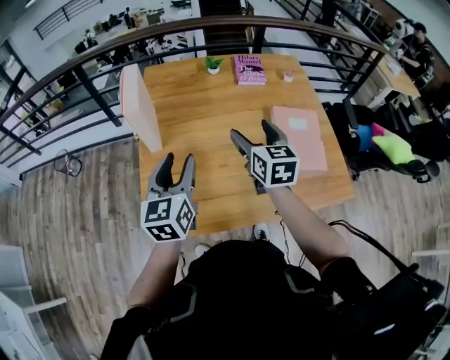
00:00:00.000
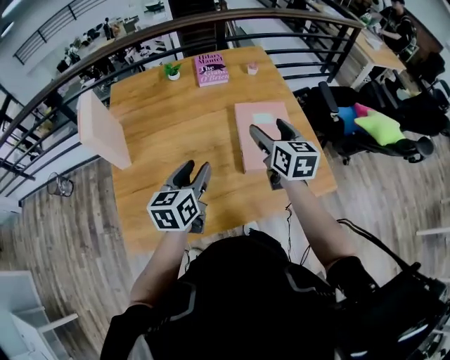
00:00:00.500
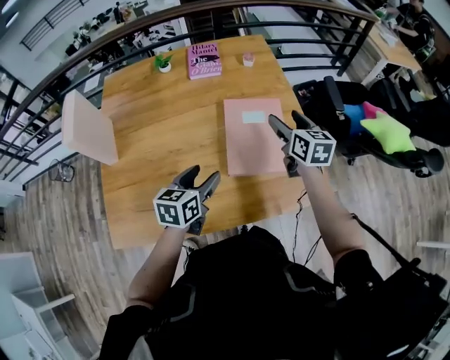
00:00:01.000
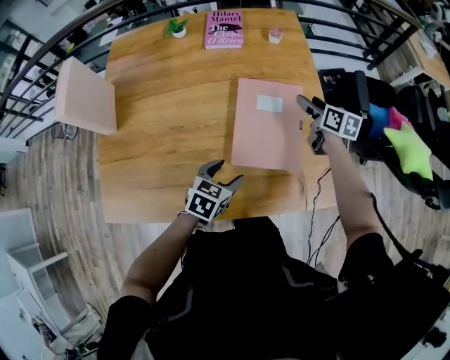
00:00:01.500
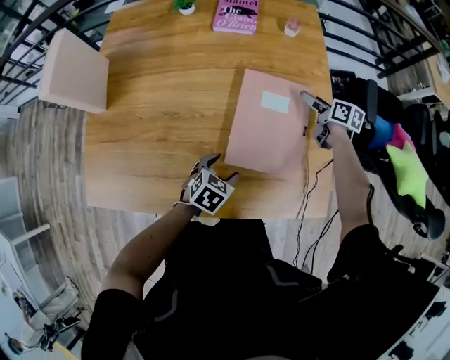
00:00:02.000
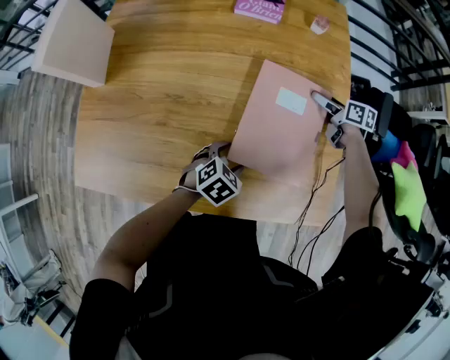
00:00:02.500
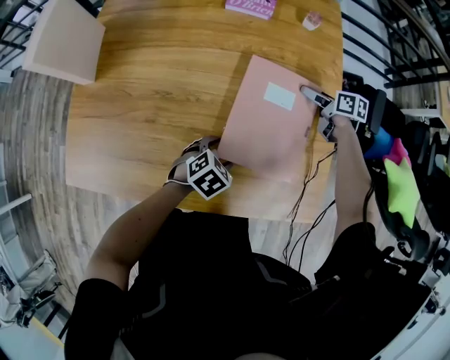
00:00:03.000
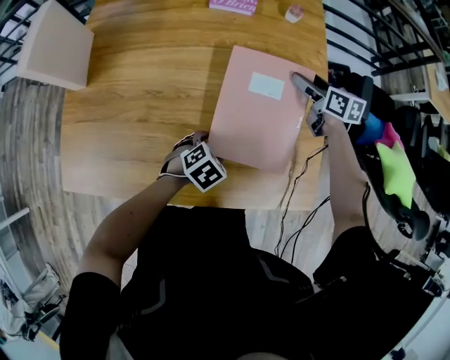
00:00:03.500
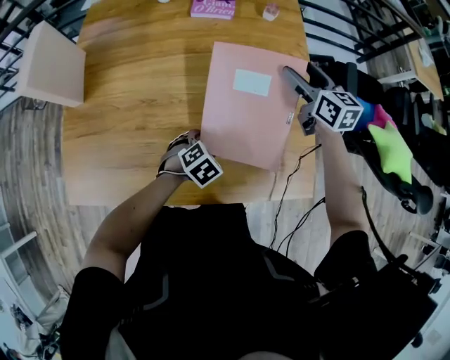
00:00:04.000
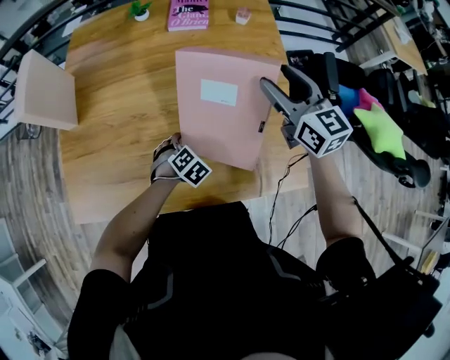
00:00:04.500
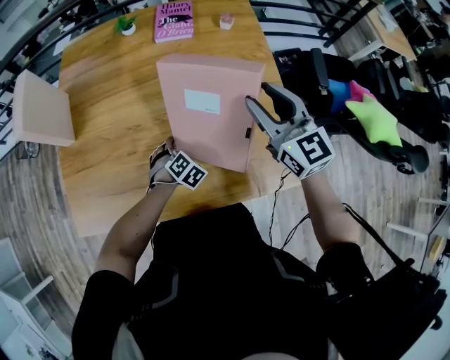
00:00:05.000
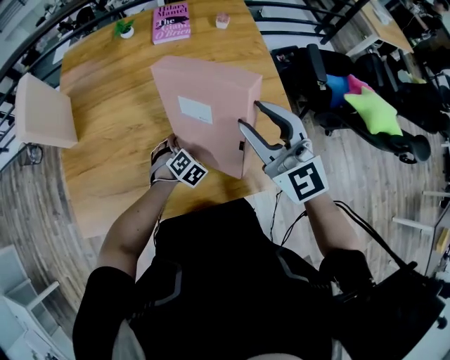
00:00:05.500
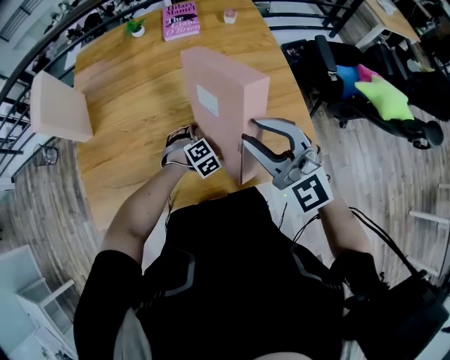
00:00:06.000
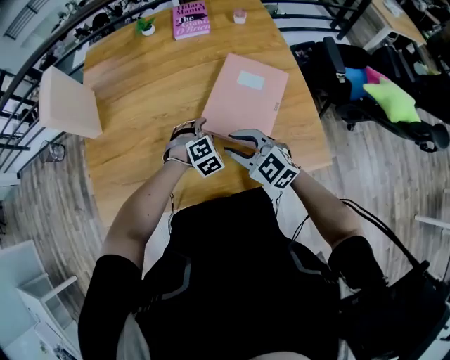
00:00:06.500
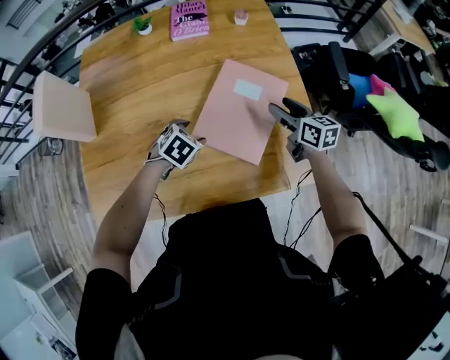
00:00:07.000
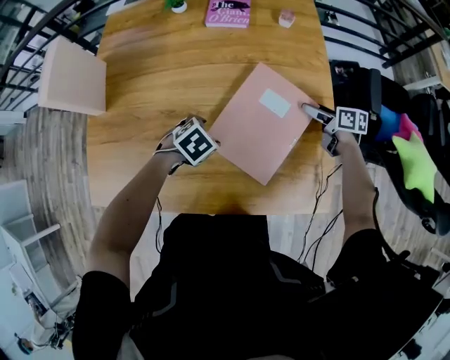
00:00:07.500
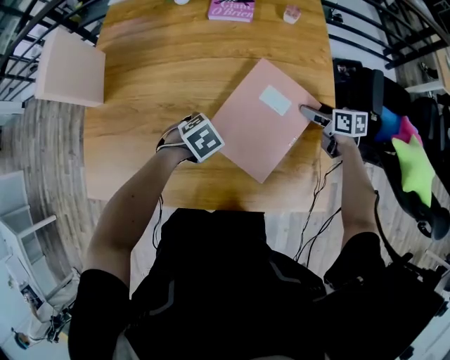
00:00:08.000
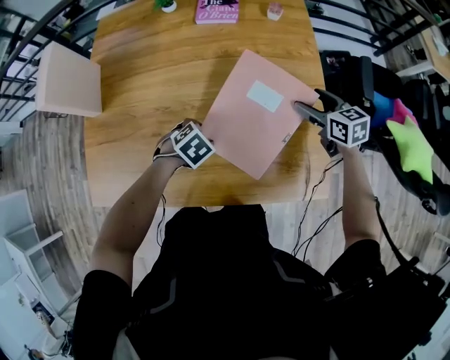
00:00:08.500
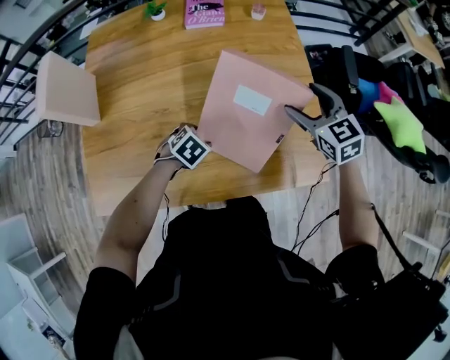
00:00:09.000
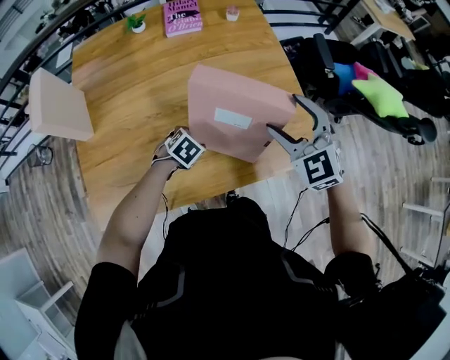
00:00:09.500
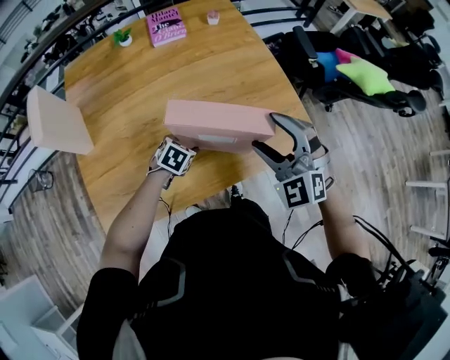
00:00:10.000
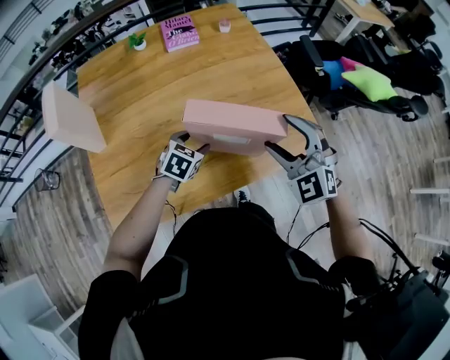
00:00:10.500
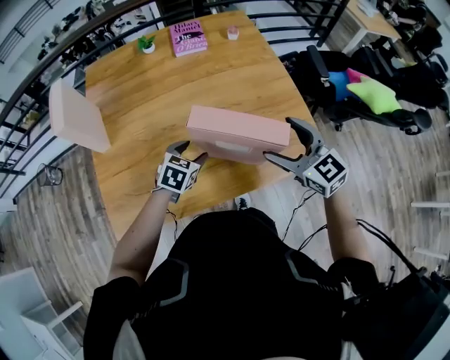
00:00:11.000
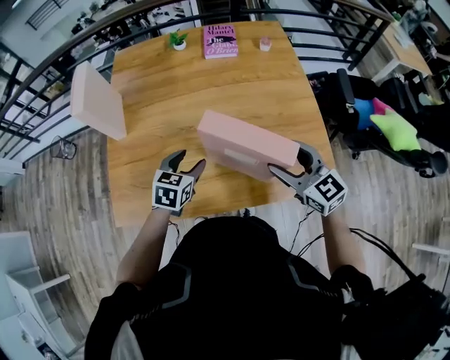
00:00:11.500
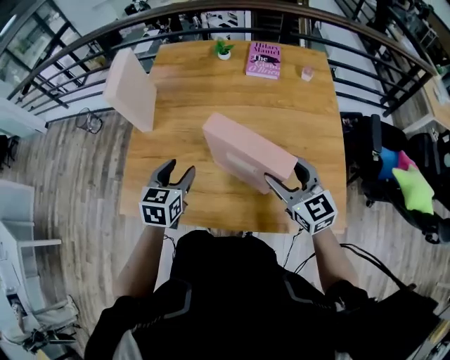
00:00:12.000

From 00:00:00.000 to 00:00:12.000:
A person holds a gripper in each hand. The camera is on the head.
From 00:00:00.000 to 00:00:02.000: The left gripper heads to the right and downward, covering roughly 50 cm, and points its fingers some 50 degrees further downward, while the right gripper heads to the right, downward and forward, covering roughly 50 cm, and swivels roughly 40 degrees.
From 00:00:02.000 to 00:00:04.000: The right gripper travels upward by approximately 15 cm, and changes its angle by about 30 degrees, while the left gripper rotates about 20 degrees.
From 00:00:04.000 to 00:00:06.000: The left gripper swivels some 30 degrees; the right gripper travels backward, to the left and upward by approximately 35 cm, rolls counterclockwise, seen from behind, by roughly 40 degrees, and closes up.
From 00:00:06.000 to 00:00:08.000: The right gripper changes place by some 40 cm, rotates around the line of its fingers by some 60 degrees, clockwise from behind, and opens its fingers. The left gripper changes place by some 5 cm, and turns by approximately 40 degrees.
From 00:00:08.000 to 00:00:10.000: The left gripper changes place by some 10 cm. Meanwhile the right gripper ends up roughly 40 cm from where it was, and rotates around the line of its fingers by approximately 70 degrees, counterclockwise from behind.
From 00:00:10.000 to 00:00:12.000: The left gripper heads upward, covering some 15 cm, and turns by approximately 50 degrees. The right gripper changes place by some 10 cm, and changes its angle by approximately 50 degrees.

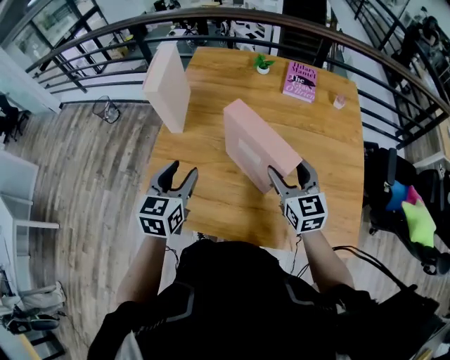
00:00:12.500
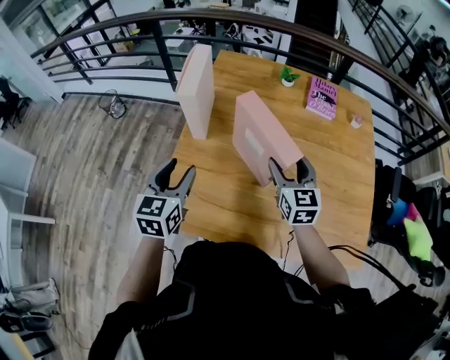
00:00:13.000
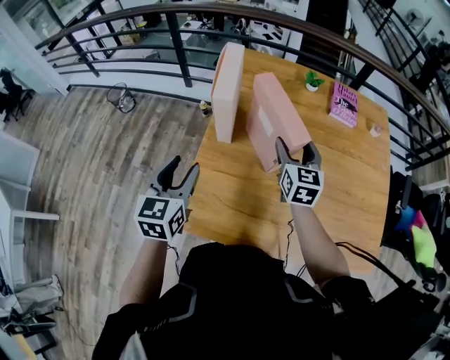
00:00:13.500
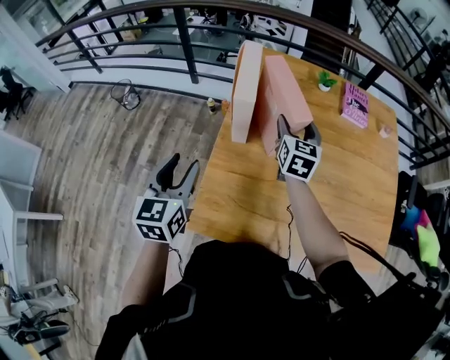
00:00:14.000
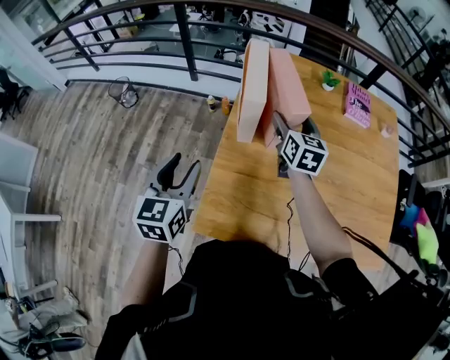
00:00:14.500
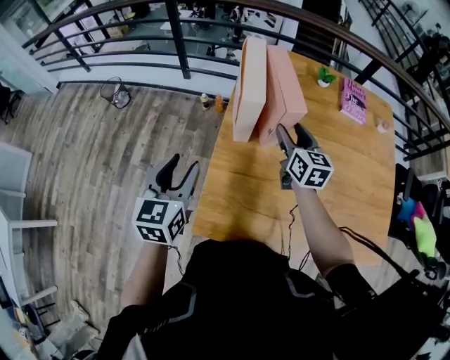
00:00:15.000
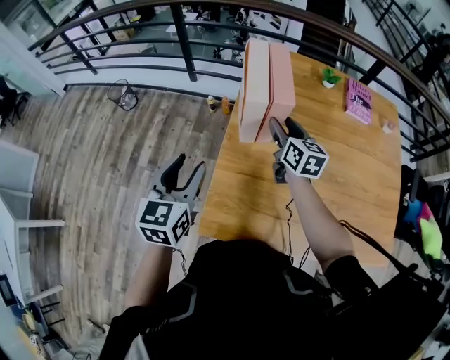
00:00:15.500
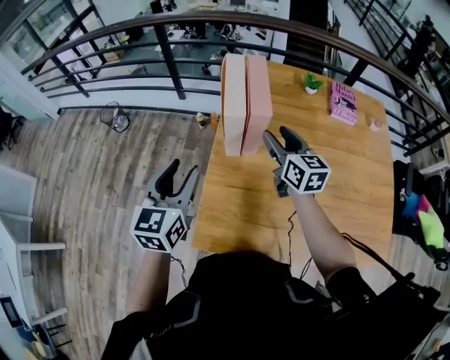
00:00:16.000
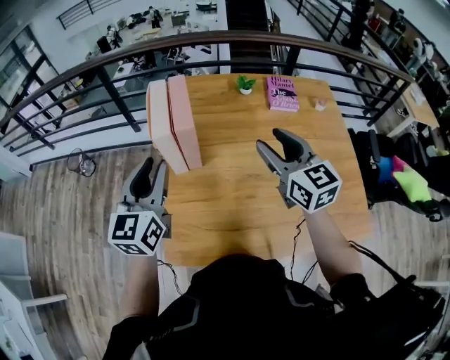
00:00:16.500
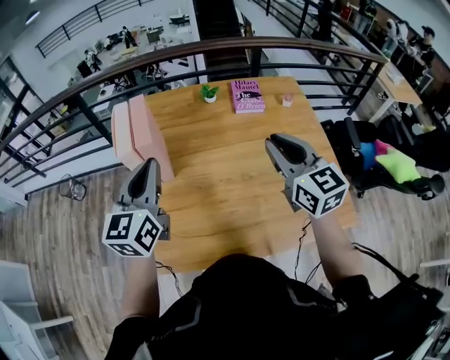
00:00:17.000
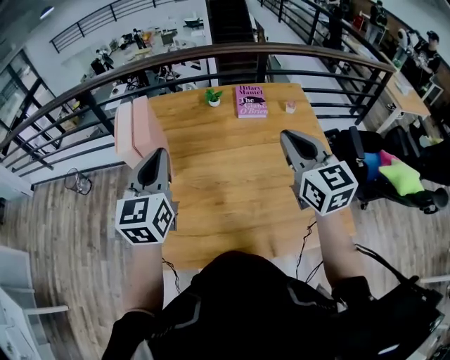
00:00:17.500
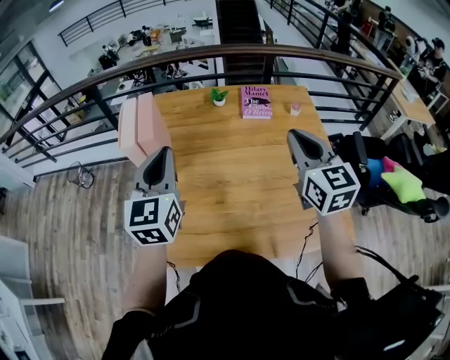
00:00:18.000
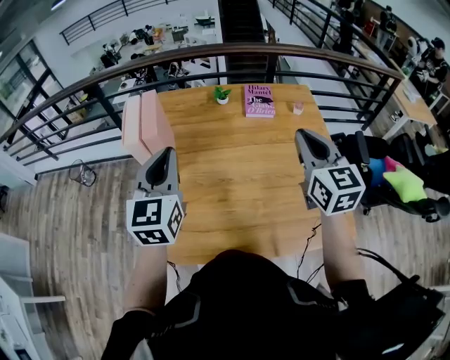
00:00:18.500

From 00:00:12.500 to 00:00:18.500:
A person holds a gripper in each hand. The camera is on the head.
From 00:00:12.500 to 00:00:14.500: The left gripper moves to the left, approximately 30 cm. Meanwhile the right gripper shifts about 35 cm to the left and forward.
From 00:00:14.500 to 00:00:16.500: The left gripper moves to the right and upward, roughly 15 cm. The right gripper goes roughly 25 cm to the right, backward and upward, and closes up.
From 00:00:16.500 to 00:00:18.500: Both grippers travel together to the right, about 20 cm. The left gripper closes up; the right gripper closes its fingers.

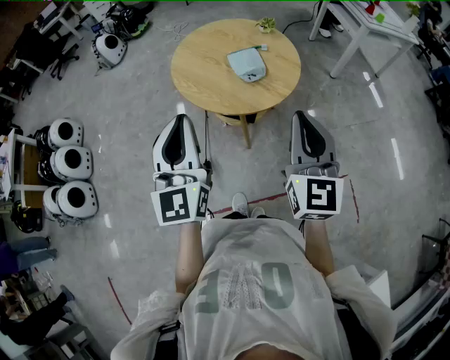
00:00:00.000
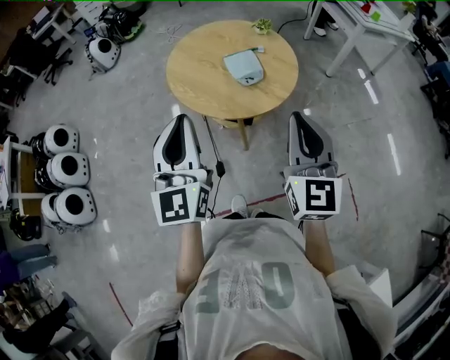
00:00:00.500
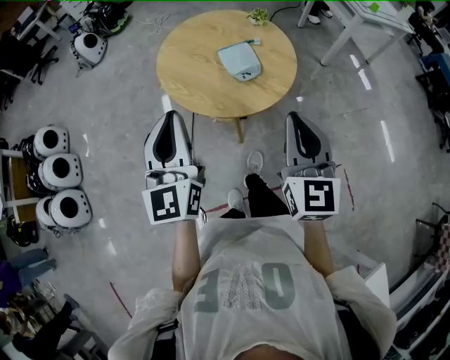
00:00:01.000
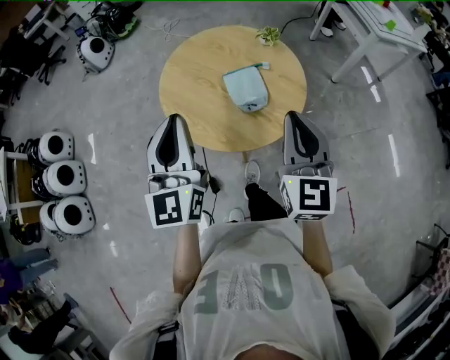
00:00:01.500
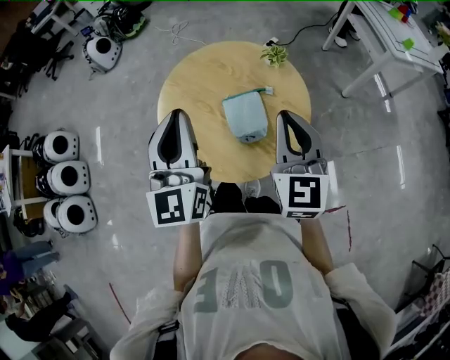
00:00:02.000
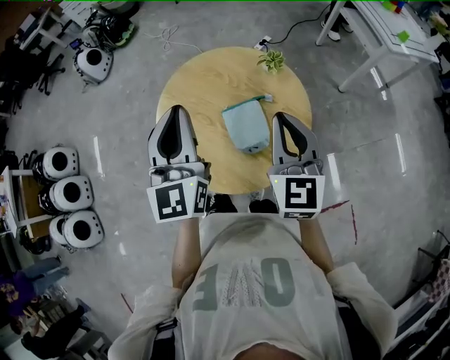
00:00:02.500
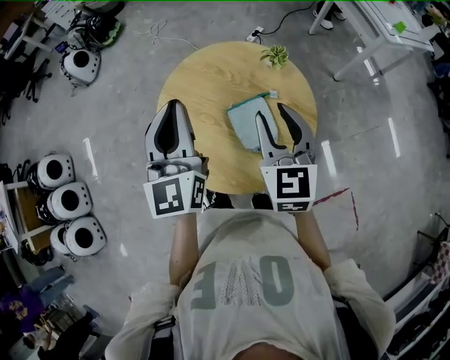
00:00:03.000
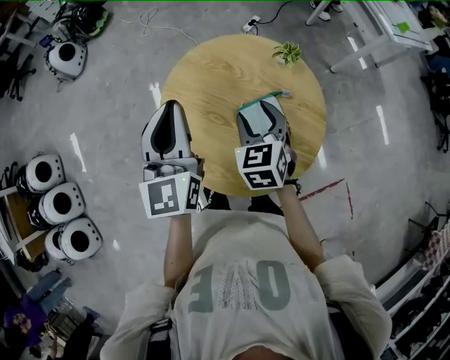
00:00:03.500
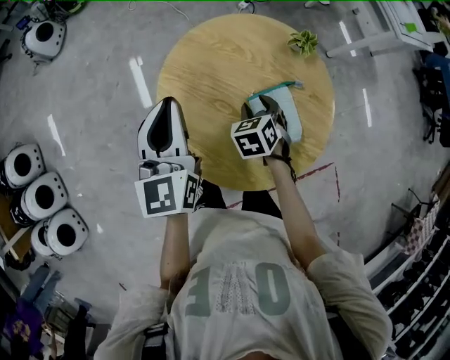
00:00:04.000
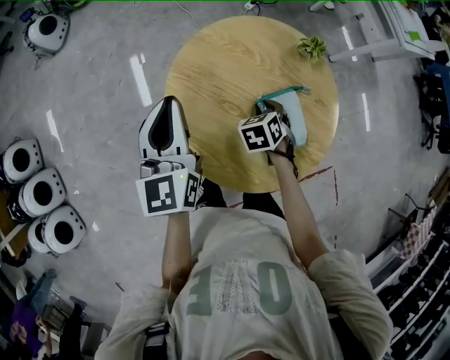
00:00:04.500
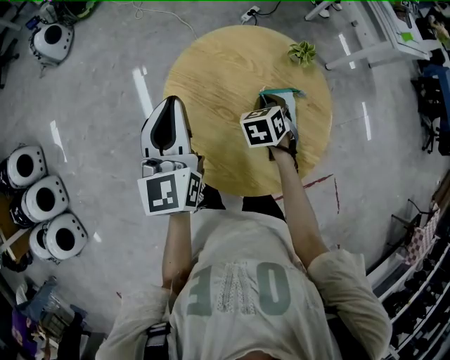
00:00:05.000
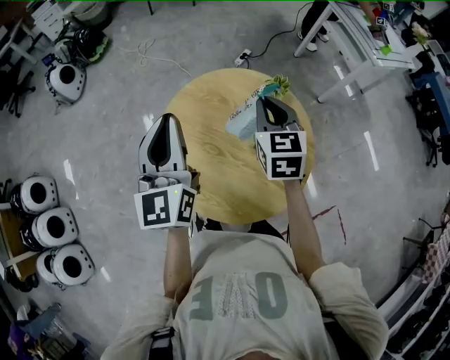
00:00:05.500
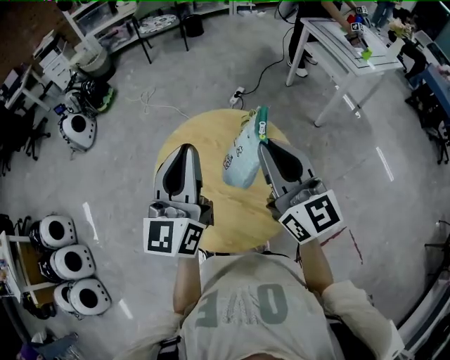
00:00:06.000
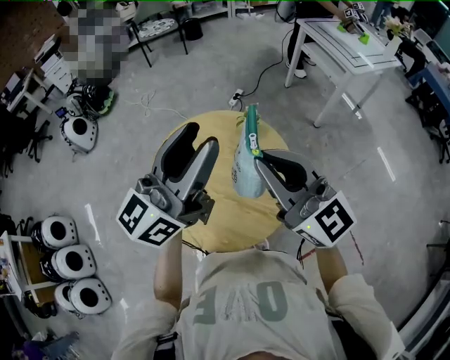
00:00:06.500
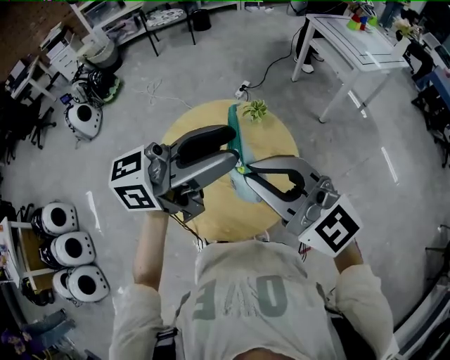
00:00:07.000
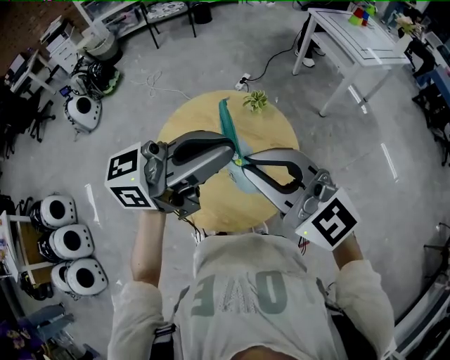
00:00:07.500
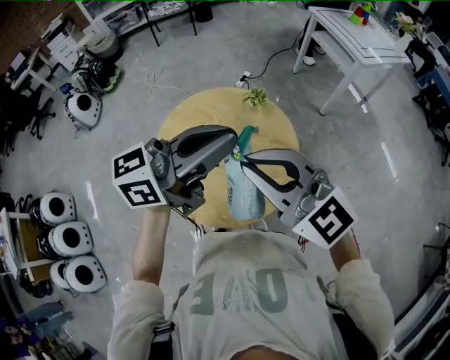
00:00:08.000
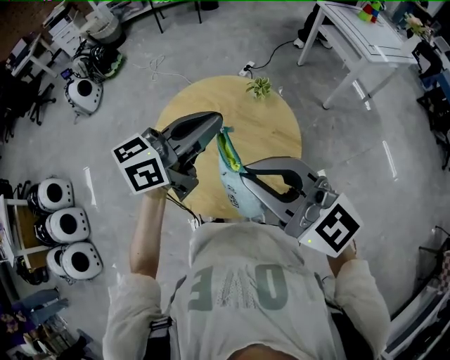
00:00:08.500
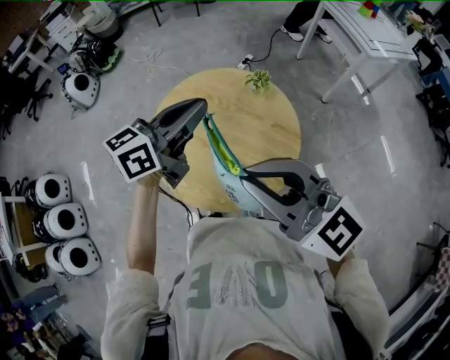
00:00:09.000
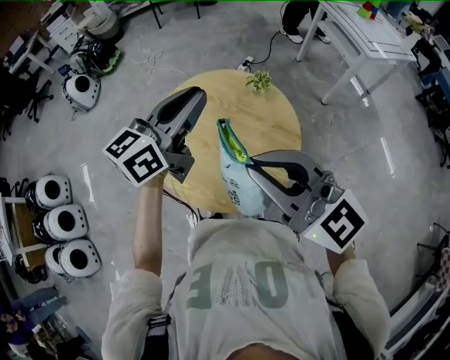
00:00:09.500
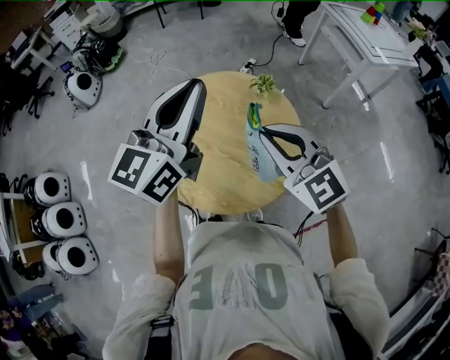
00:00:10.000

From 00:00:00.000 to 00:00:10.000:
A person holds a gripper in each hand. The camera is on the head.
From 00:00:00.000 to 00:00:02.000: The grippers both shift forward by some 30 cm.
From 00:00:02.000 to 00:00:04.000: The left gripper heads to the left, forward and downward, covering about 30 cm, and rotates about 20 degrees; the right gripper shifts some 35 cm downward, to the left and forward, angles its fingers downward, by approximately 50 degrees, and opens.
From 00:00:04.000 to 00:00:06.000: The left gripper shifts roughly 25 cm upward and to the right, and swivels roughly 20 degrees. Meanwhile the right gripper heads upward, covering approximately 35 cm, tips its fingers upward by roughly 60 degrees, and closes its fingers.
From 00:00:06.000 to 00:00:08.000: The left gripper moves roughly 15 cm, changes its angle by some 60 degrees, and opens, then closes once more. Meanwhile the right gripper moves about 10 cm, and rotates roughly 30 degrees.
From 00:00:08.000 to 00:00:10.000: The right gripper moves downward, some 10 cm, while the left gripper goes about 10 cm to the left and forward, moves about 10 cm downward and comes back, and rotates some 50 degrees.
